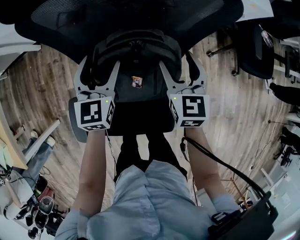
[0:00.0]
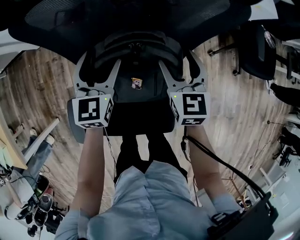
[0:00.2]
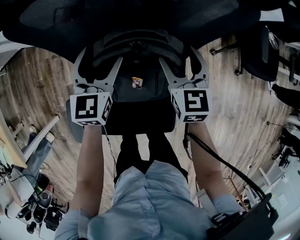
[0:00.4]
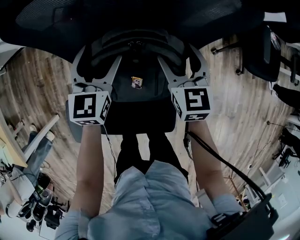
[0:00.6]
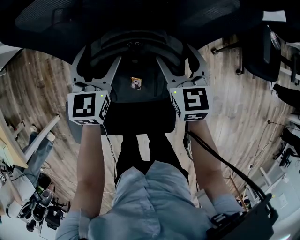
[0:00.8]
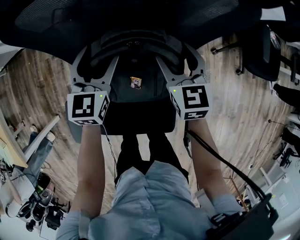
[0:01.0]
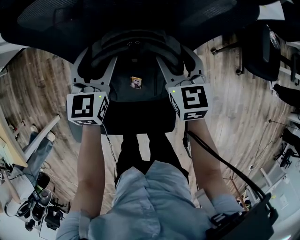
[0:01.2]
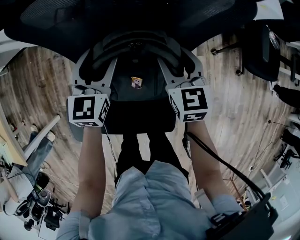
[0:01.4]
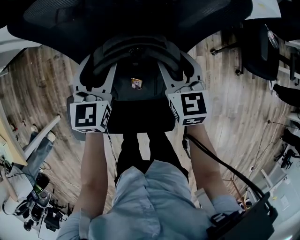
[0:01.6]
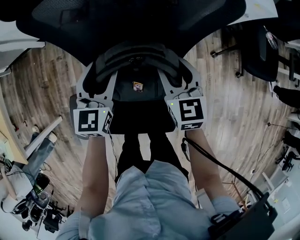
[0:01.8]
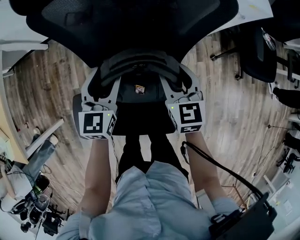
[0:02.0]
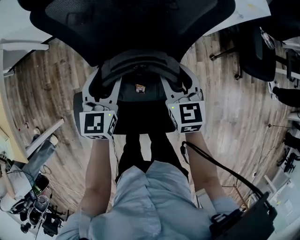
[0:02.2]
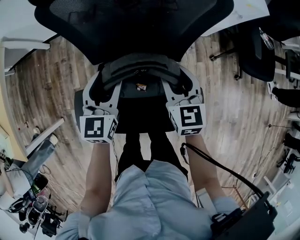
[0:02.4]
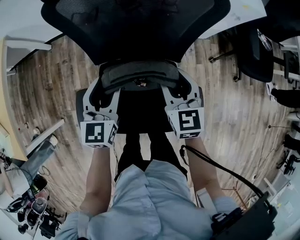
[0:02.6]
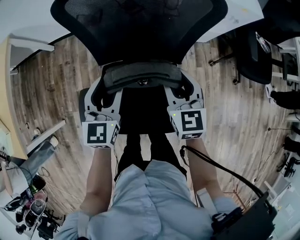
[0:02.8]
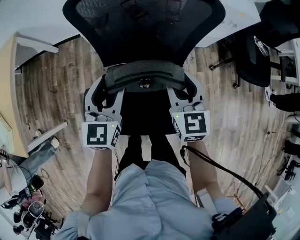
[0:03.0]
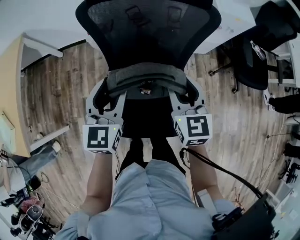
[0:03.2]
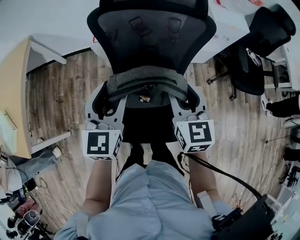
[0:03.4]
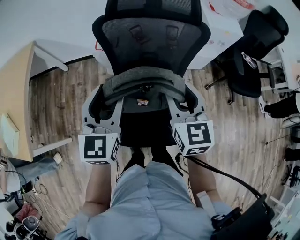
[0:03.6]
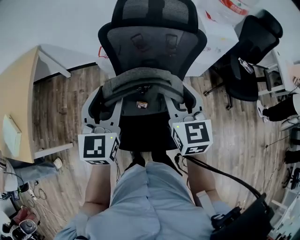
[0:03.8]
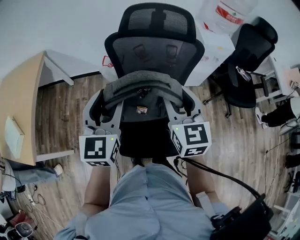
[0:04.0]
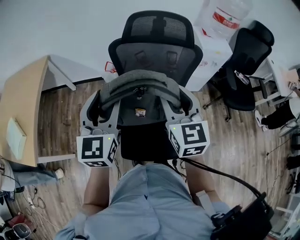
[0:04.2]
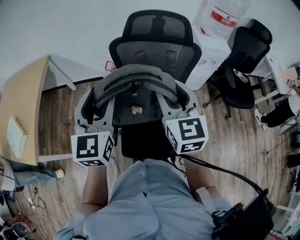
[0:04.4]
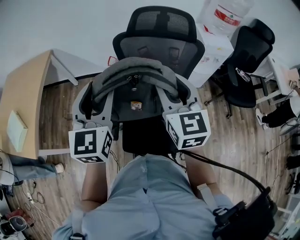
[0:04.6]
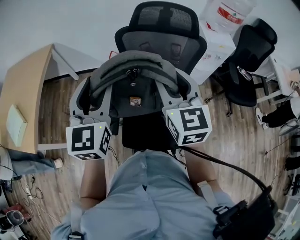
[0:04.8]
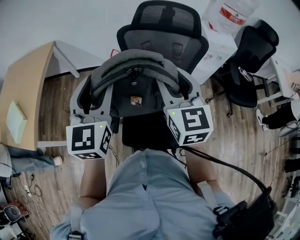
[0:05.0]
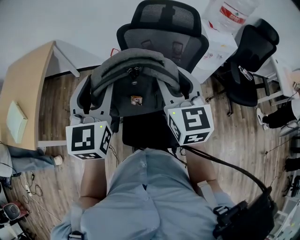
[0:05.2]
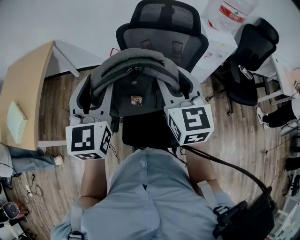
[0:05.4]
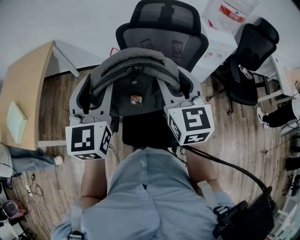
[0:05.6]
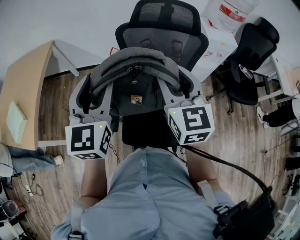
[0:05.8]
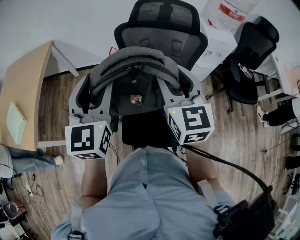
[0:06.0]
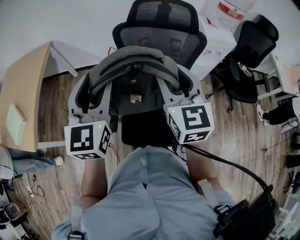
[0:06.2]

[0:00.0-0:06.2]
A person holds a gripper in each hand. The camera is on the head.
0:00.0 to 0:01.6: The grippers make only small movements.
0:01.6 to 0:03.2: The grippers both shift upward and backward by roughly 20 cm.
0:03.2 to 0:04.6: Both grippers move upward and to the left, about 20 cm.
0:04.6 to 0:06.2: The grippers move only a little.

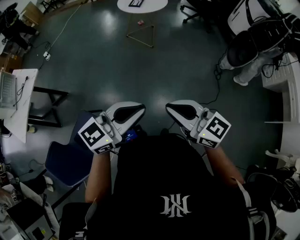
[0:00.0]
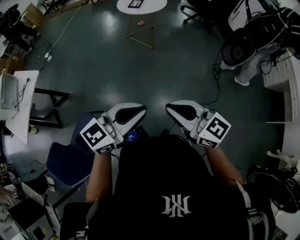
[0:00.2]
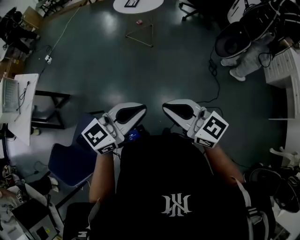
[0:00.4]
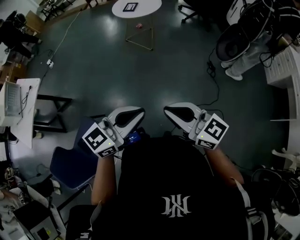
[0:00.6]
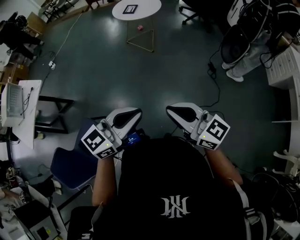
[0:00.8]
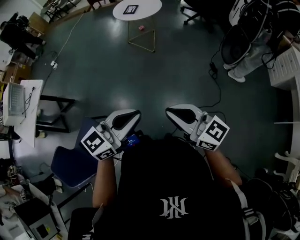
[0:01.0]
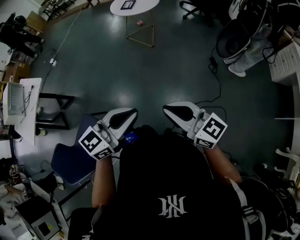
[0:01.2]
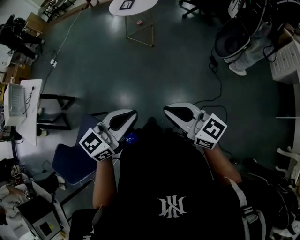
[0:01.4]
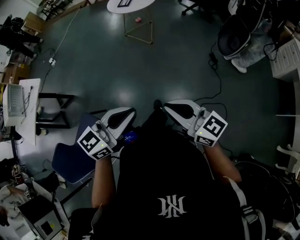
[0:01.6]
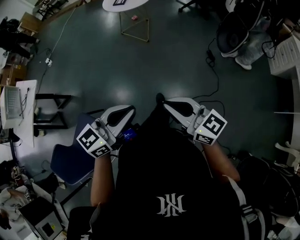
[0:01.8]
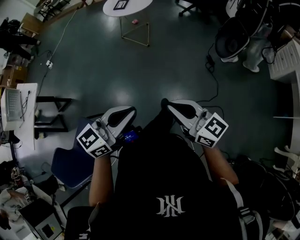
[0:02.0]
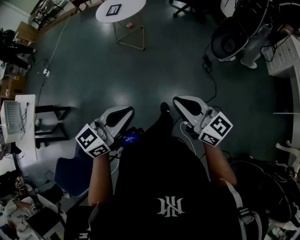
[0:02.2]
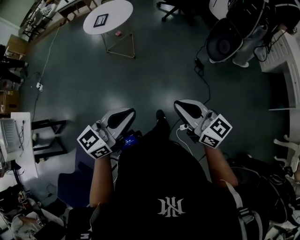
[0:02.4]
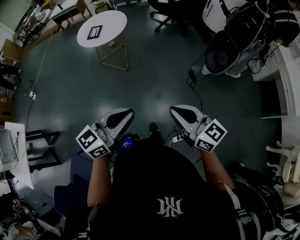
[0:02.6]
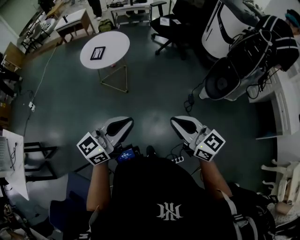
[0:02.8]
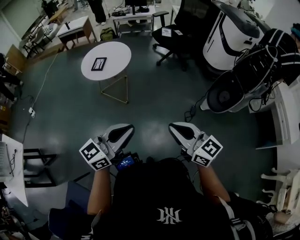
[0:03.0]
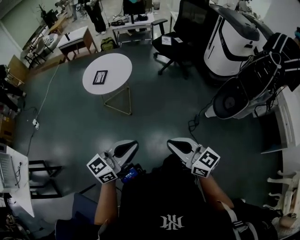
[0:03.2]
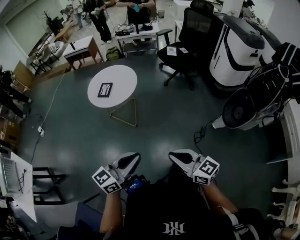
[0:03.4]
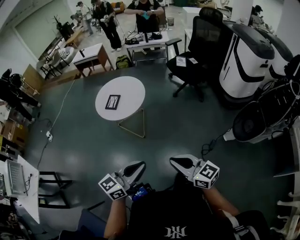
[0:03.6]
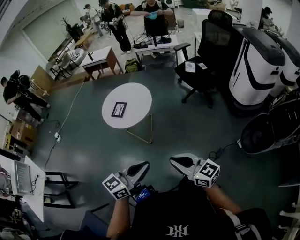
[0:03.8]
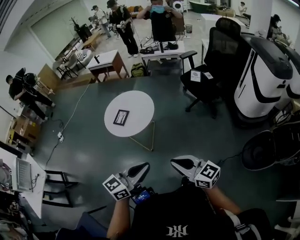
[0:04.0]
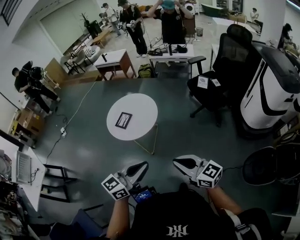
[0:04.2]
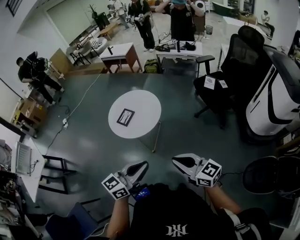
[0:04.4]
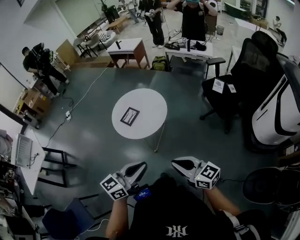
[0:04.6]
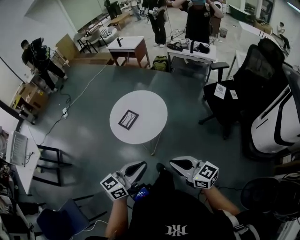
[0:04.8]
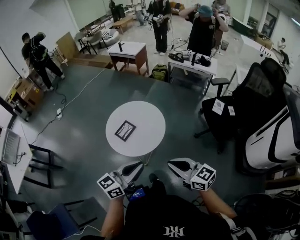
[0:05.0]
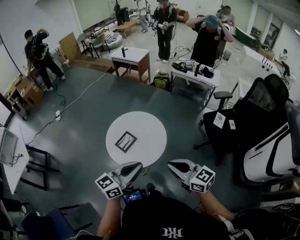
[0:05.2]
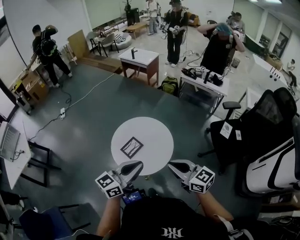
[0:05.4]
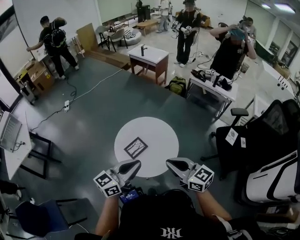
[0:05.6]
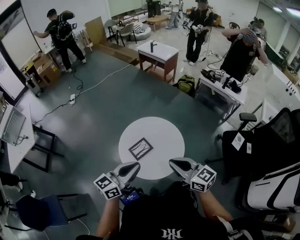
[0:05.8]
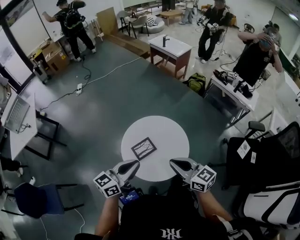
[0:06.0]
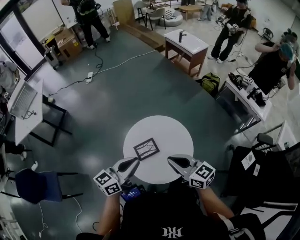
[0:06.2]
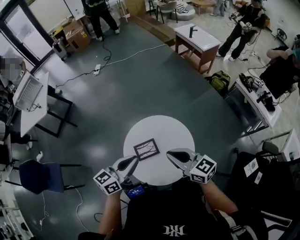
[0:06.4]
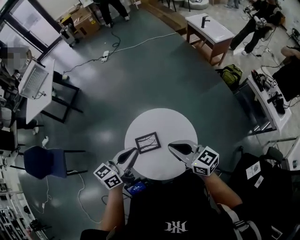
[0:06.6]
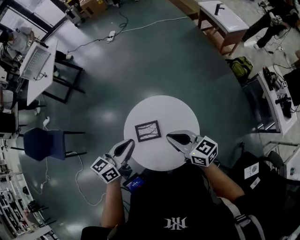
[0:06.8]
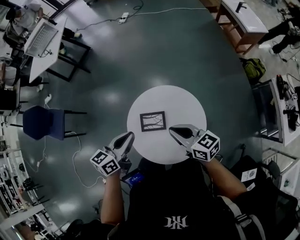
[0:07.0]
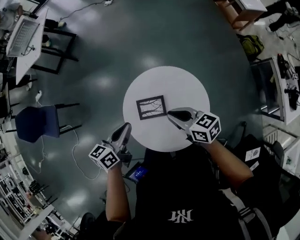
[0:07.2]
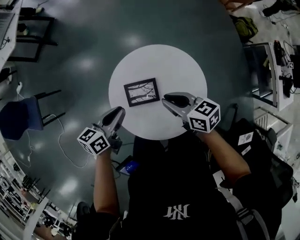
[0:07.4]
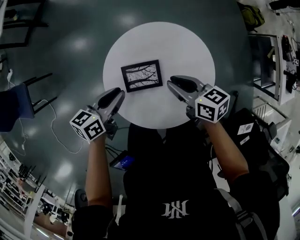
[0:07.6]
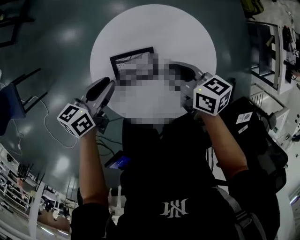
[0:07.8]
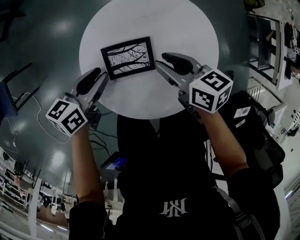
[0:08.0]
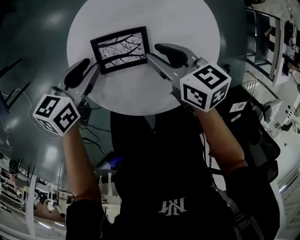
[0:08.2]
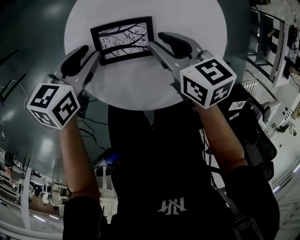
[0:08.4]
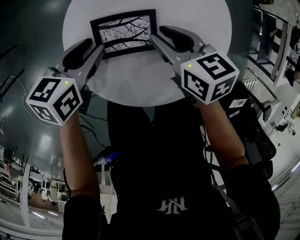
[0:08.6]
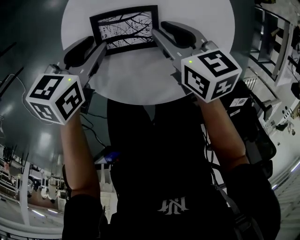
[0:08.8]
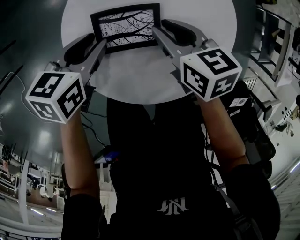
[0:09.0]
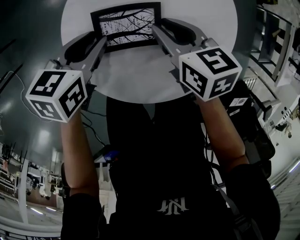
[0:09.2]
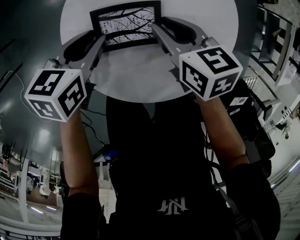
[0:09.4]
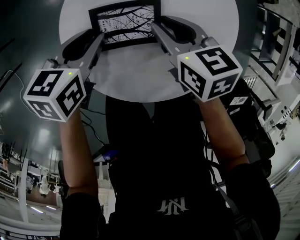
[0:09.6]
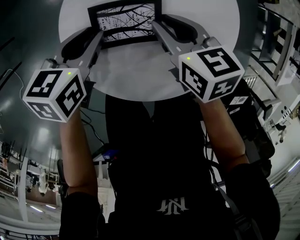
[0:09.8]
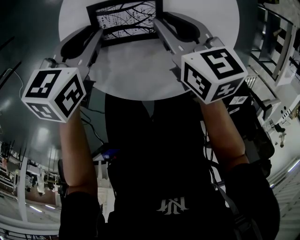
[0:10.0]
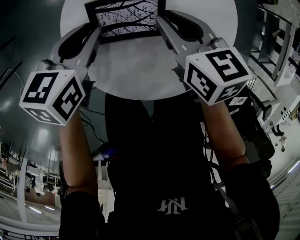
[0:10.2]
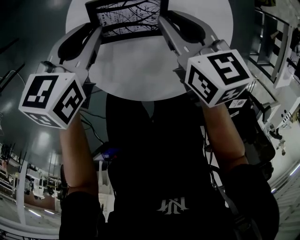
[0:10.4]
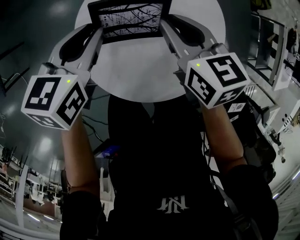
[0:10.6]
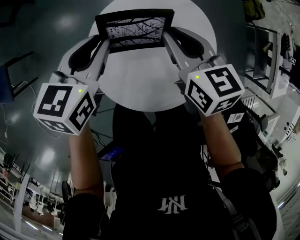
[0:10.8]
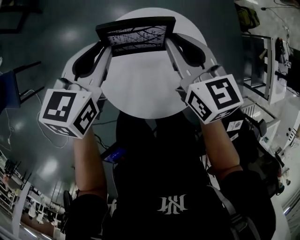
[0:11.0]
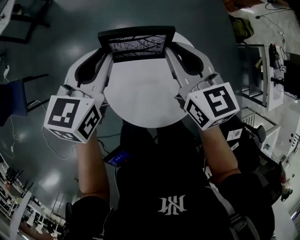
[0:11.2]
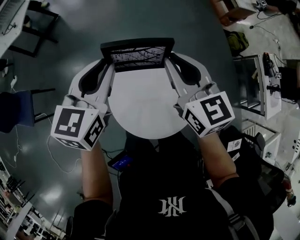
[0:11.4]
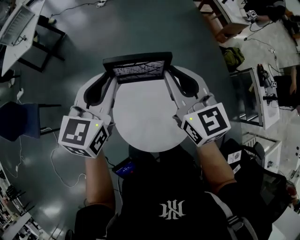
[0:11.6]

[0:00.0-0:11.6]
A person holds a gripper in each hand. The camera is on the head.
0:00.0 to 0:01.4: Both grippers travel together to the right, approximately 10 cm.
0:01.4 to 0:02.8: The left gripper goes roughly 35 cm forward; the right gripper heads forward and to the right, covering about 35 cm.
0:02.8 to 0:04.4: The right gripper ends up about 40 cm from where it was, and changes its angle by roughly 30 degrees; the left gripper moves roughly 40 cm, and swivels roughly 20 degrees.
0:04.4 to 0:05.8: Both grippers travel together forward, approximately 40 cm. The left gripper swivels roughly 20 degrees.
0:05.8 to 0:07.2: The right gripper changes place by roughly 30 cm, and rotates approximately 50 degrees. The left gripper goes about 15 cm downward, and rotates roughly 60 degrees.
0:07.2 to 0:08.8: Both grippers travel together downward, roughly 25 cm. The left gripper turns by roughly 30 degrees, and opens up, while the right gripper turns by roughly 20 degrees, and opens up.
0:08.8 to 0:10.2: The grippers make only small movements.
0:10.2 to 0:11.6: The two grippers go about 40 cm upward. The right gripper tips its fingers upward by roughly 30 degrees; the left gripper swivels roughly 40 degrees.

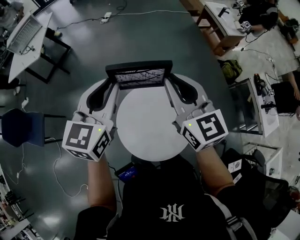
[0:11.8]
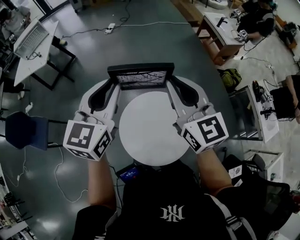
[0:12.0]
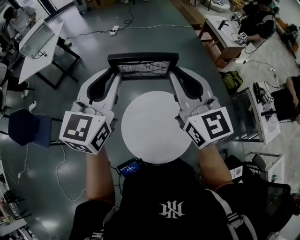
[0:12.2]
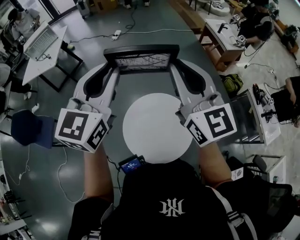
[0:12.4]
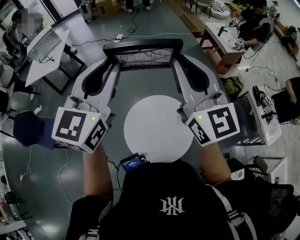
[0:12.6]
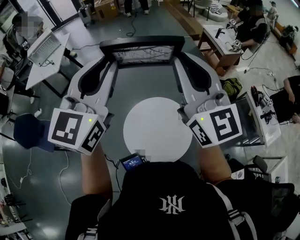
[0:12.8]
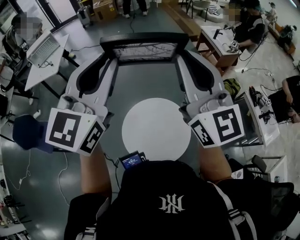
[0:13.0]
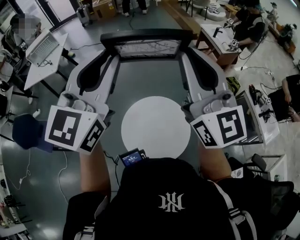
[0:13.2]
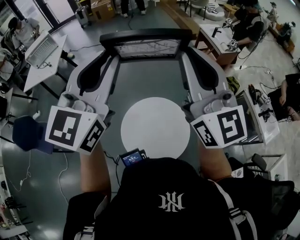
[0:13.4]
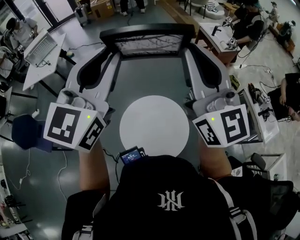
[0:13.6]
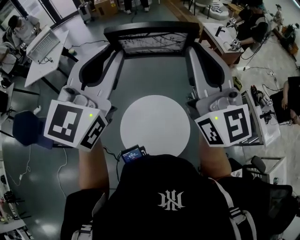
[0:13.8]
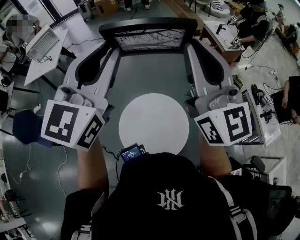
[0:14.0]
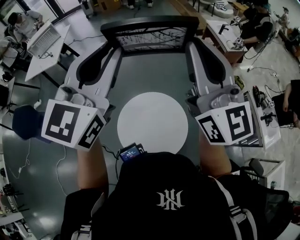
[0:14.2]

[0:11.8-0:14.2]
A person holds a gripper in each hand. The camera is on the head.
0:11.8 to 0:13.0: Both grippers travel together upward and backward, roughly 25 cm. The right gripper swivels roughly 30 degrees; the left gripper swivels approximately 20 degrees.
0:13.0 to 0:14.2: The left gripper ends up some 5 cm from where it was, while the right gripper heads to the right, covering about 5 cm.

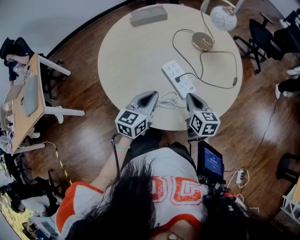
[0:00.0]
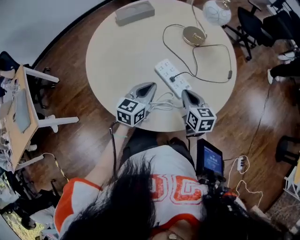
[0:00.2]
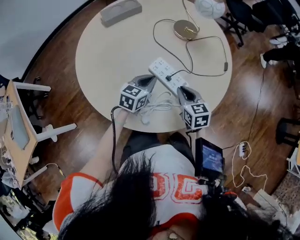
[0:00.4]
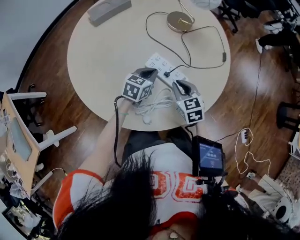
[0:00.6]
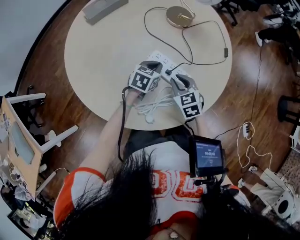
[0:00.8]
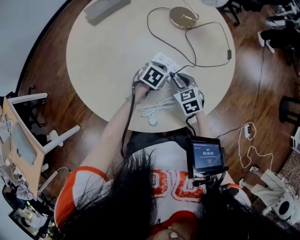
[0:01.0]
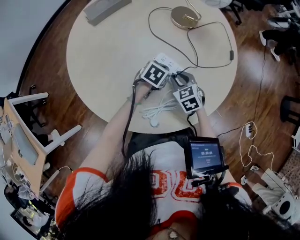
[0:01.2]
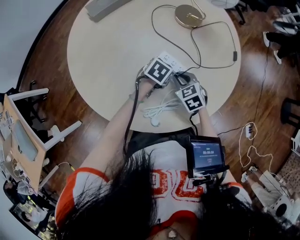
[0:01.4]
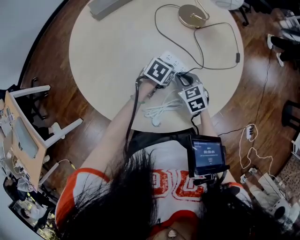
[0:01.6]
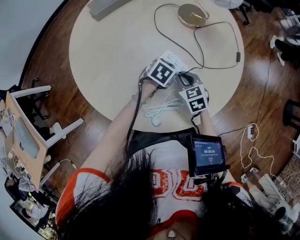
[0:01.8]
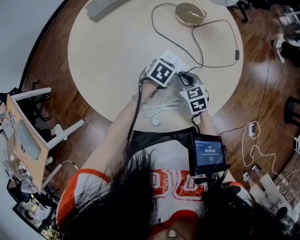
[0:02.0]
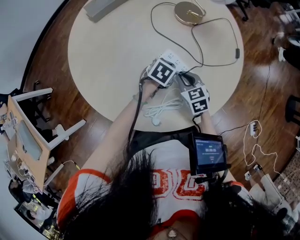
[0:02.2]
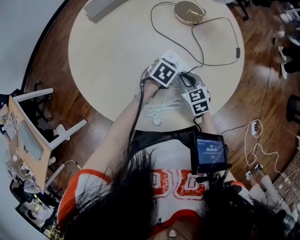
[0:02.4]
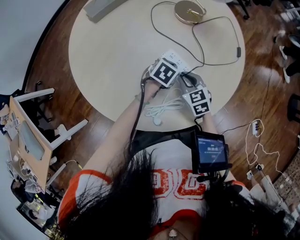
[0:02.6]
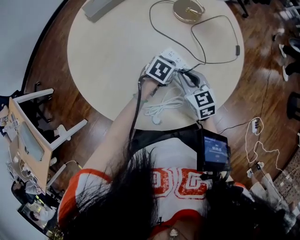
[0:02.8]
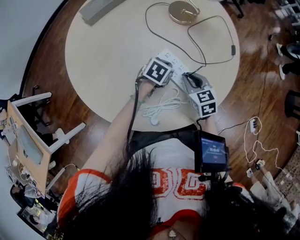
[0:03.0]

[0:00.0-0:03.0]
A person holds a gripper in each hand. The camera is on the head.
0:00.0 to 0:01.6: The left gripper is displaced downward and forward by some 20 cm, and angles its fingers downward, by roughly 40 degrees, while the right gripper travels downward, to the left and forward by about 15 cm, and turns by some 30 degrees.
0:01.6 to 0:03.0: There are only small adjustments of the grippers.
